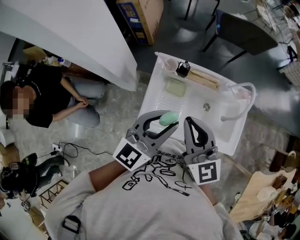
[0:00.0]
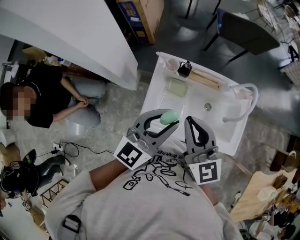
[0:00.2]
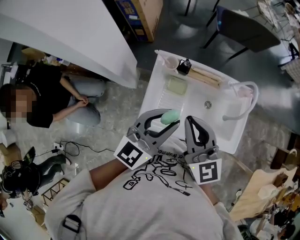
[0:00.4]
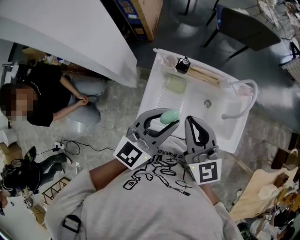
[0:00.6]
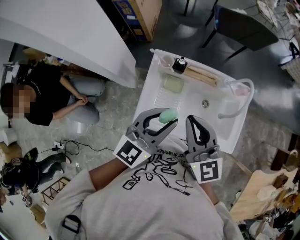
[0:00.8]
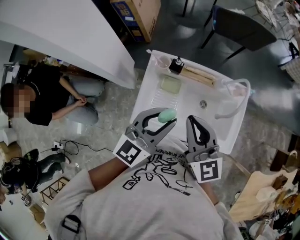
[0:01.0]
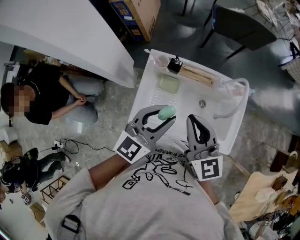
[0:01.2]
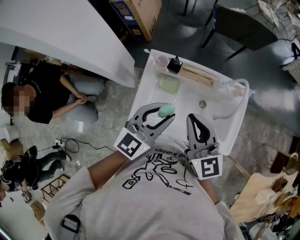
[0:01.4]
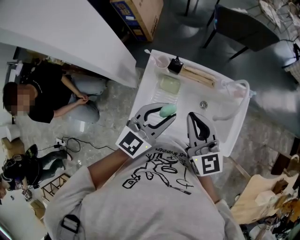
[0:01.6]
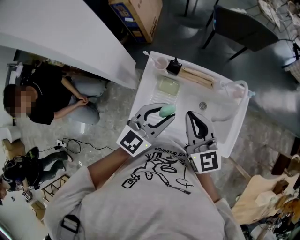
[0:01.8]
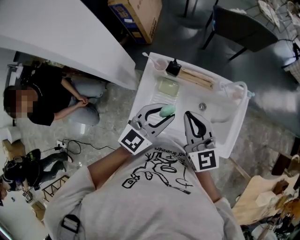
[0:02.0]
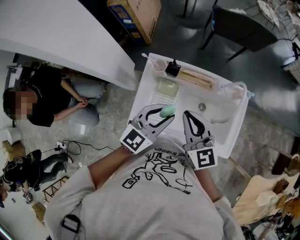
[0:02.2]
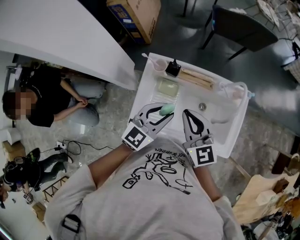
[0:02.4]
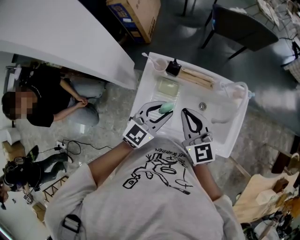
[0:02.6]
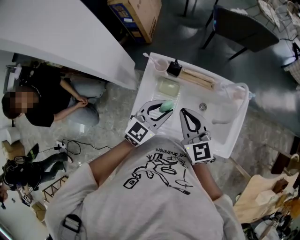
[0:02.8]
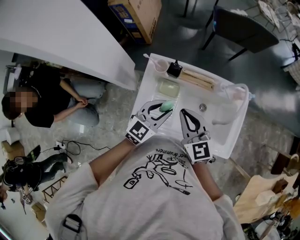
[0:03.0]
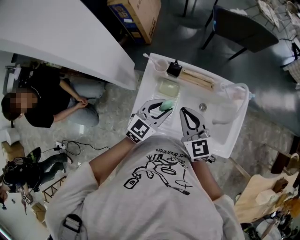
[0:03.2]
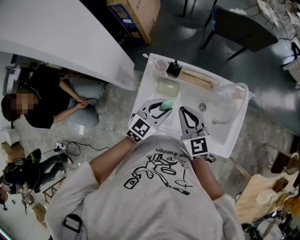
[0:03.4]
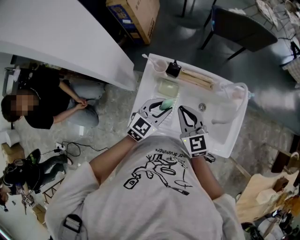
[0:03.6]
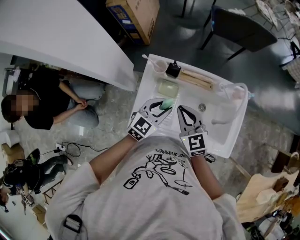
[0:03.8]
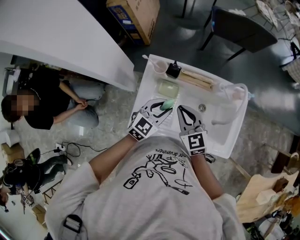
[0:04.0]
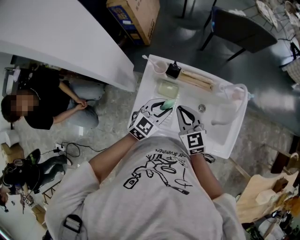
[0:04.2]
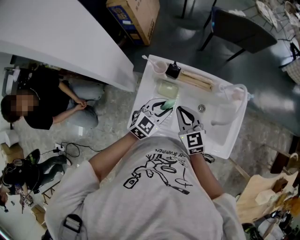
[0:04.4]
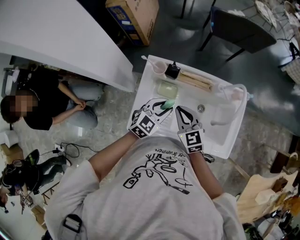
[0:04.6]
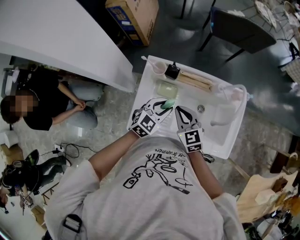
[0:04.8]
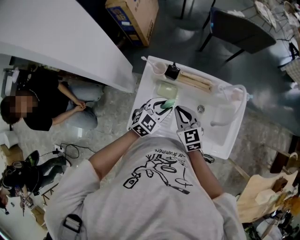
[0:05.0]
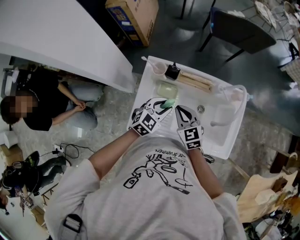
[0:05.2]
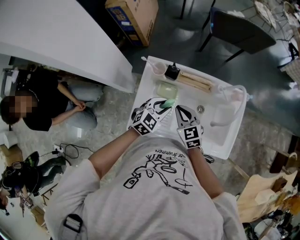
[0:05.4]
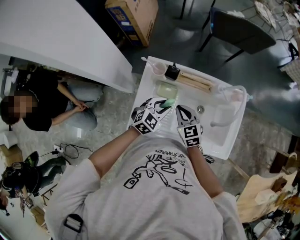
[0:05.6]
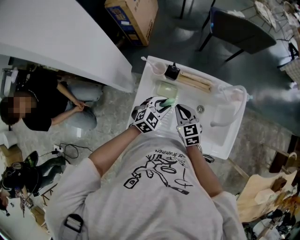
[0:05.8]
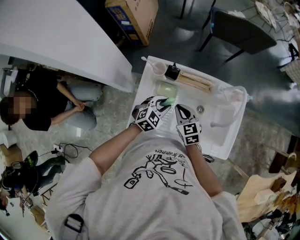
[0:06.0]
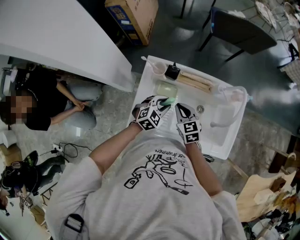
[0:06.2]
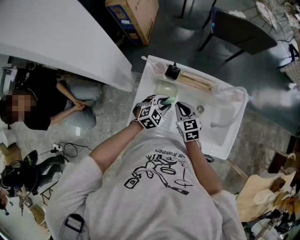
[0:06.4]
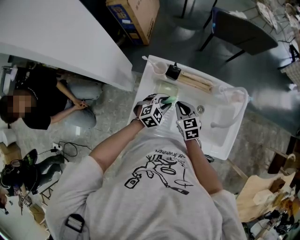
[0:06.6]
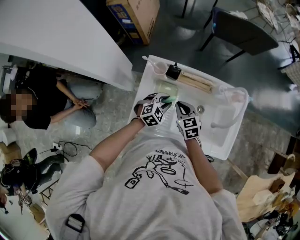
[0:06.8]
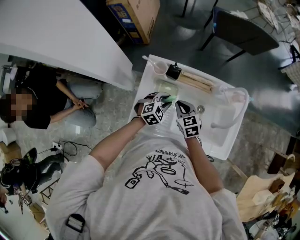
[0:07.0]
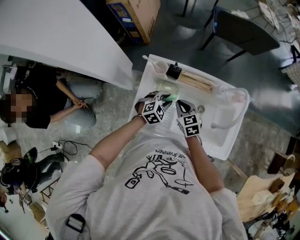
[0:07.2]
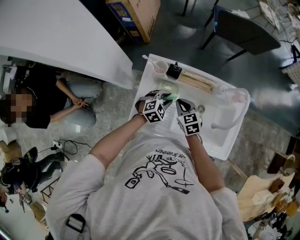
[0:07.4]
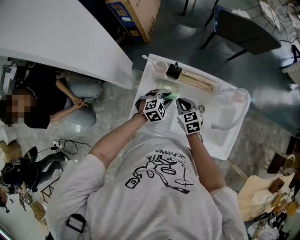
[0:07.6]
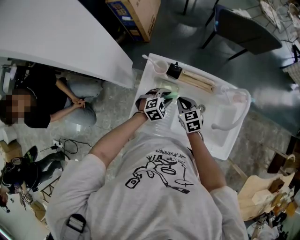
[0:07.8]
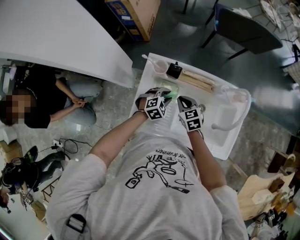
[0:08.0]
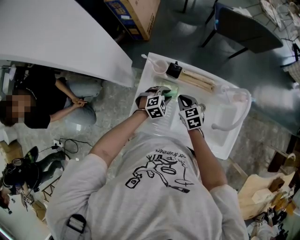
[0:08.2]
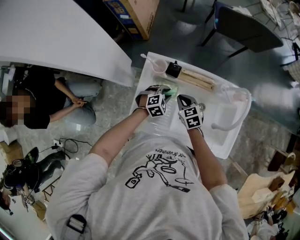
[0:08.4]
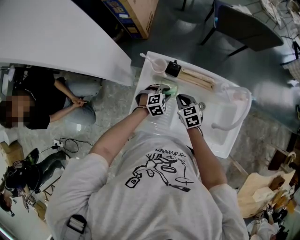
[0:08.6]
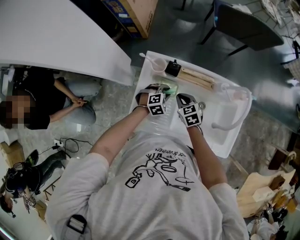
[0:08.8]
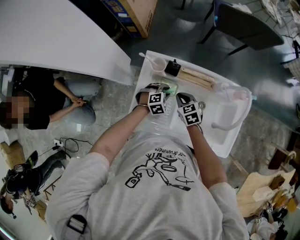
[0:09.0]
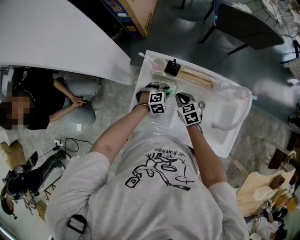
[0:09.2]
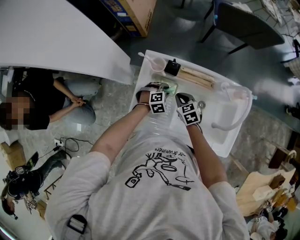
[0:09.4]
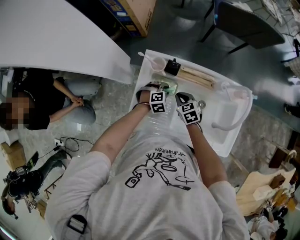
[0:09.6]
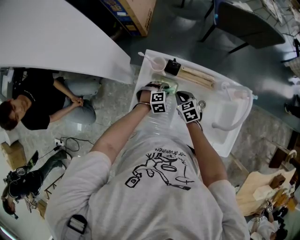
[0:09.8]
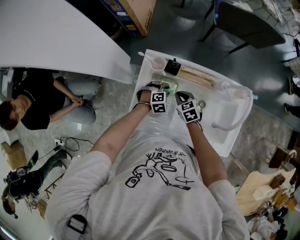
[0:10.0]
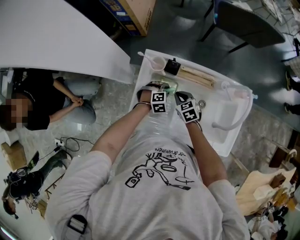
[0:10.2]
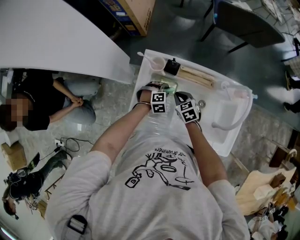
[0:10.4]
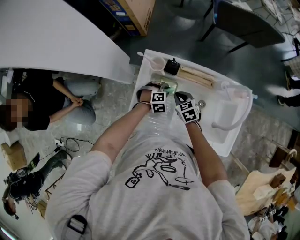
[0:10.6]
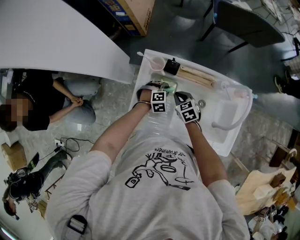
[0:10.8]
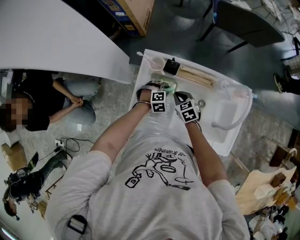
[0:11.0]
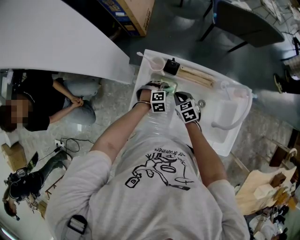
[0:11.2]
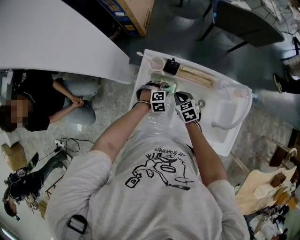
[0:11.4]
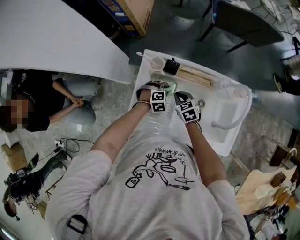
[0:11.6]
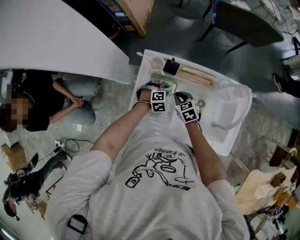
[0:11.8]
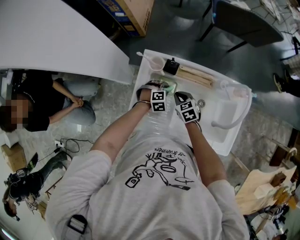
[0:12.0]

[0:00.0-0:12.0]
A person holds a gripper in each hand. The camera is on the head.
0.0 to 1.6 s: Both grippers move to the right, approximately 5 cm.
1.6 to 3.0 s: Both grippers travel together downward, about 10 cm.
3.0 to 4.4 s: Both grippers move downward, some 5 cm.
4.4 to 6.0 s: Both grippers move downward, about 10 cm.
6.0 to 7.6 s: The left gripper heads downward, covering some 5 cm, while the right gripper changes place by some 5 cm.
7.6 to 9.0 s: The left gripper goes roughly 5 cm downward.
9.0 to 10.4 s: There are only small adjustments of the grippers.
10.4 to 12.0 s: Neither gripper changes place.

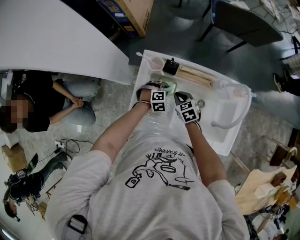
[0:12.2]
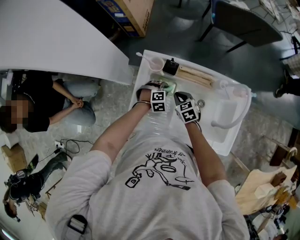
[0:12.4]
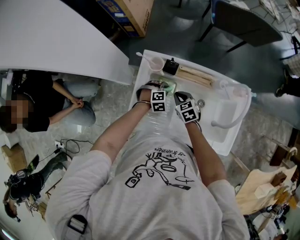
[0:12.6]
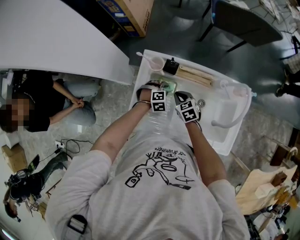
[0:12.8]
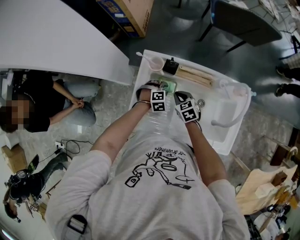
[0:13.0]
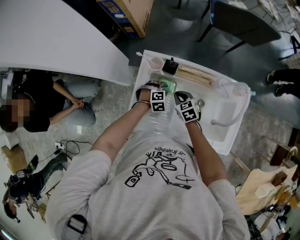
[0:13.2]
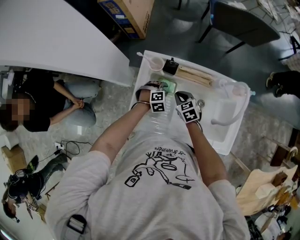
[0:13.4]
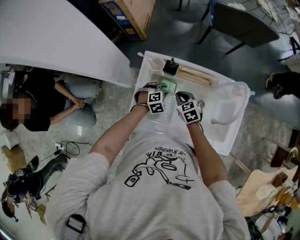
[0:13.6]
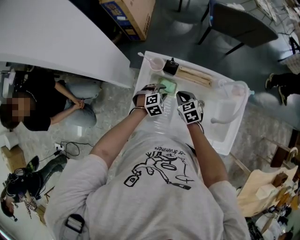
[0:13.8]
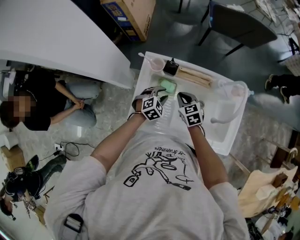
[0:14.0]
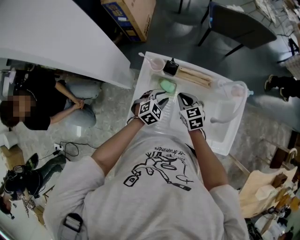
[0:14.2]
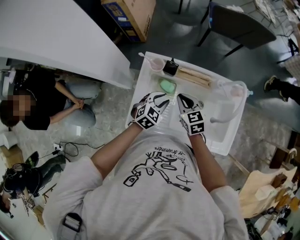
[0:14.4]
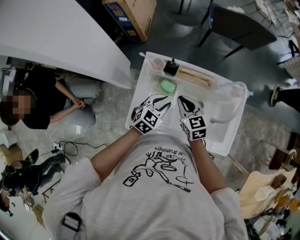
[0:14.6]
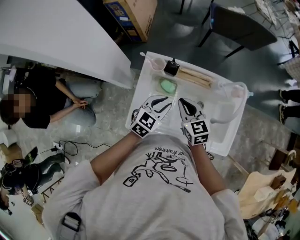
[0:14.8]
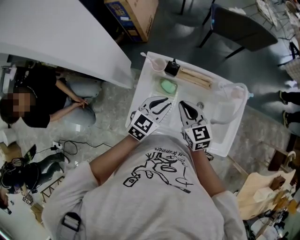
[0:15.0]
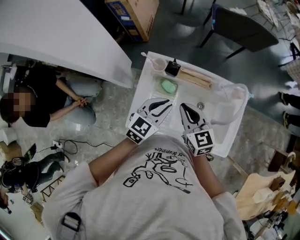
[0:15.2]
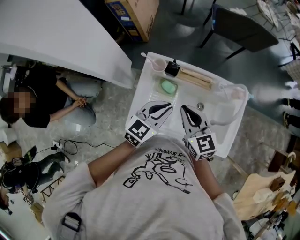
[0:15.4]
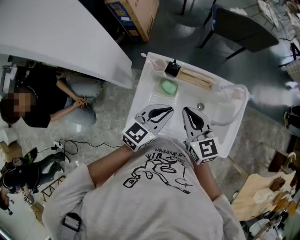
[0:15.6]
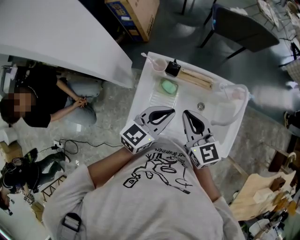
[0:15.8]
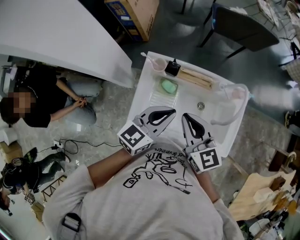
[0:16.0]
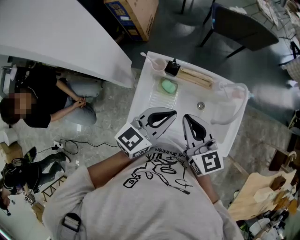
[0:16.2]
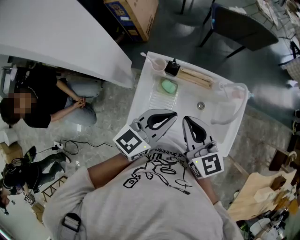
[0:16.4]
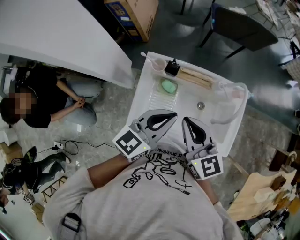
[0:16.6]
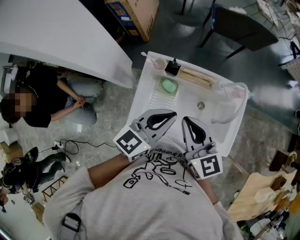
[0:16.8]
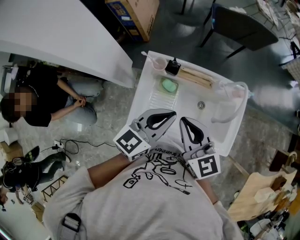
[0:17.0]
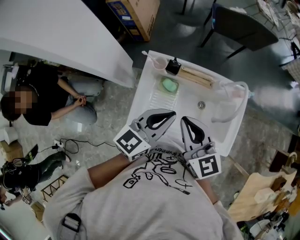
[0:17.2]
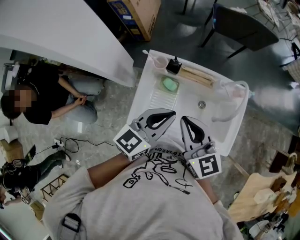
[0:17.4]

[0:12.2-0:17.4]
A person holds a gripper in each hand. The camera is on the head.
12.2 to 14.0 s: Both grippers move upward, roughly 5 cm. The left gripper changes its angle by some 20 degrees.
14.0 to 15.6 s: Both grippers travel together upward, roughly 20 cm. The left gripper tips its fingers upward by approximately 30 degrees, and closes its fingers; the right gripper rotates about 30 degrees.
15.6 to 17.4 s: Both grippers move upward, approximately 5 cm.

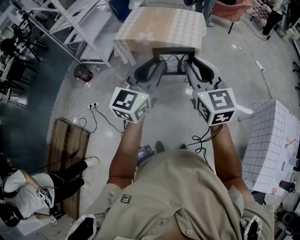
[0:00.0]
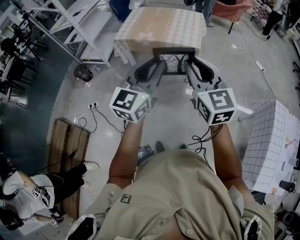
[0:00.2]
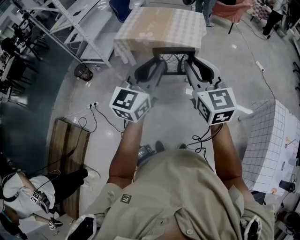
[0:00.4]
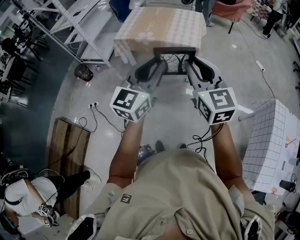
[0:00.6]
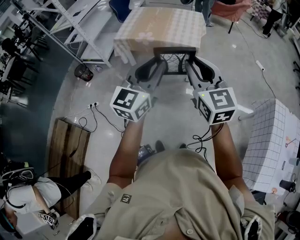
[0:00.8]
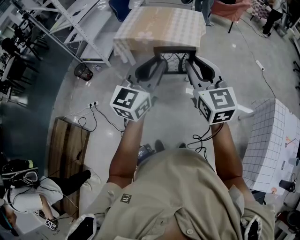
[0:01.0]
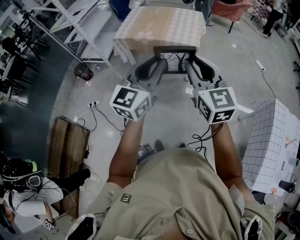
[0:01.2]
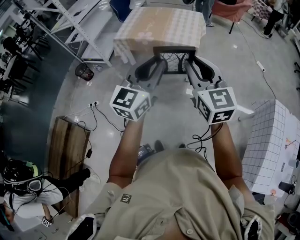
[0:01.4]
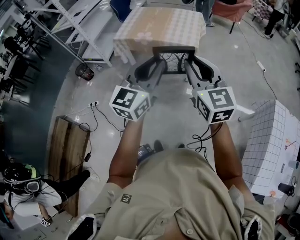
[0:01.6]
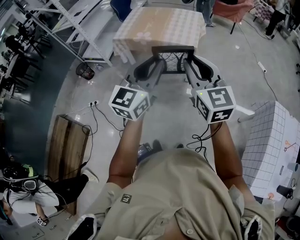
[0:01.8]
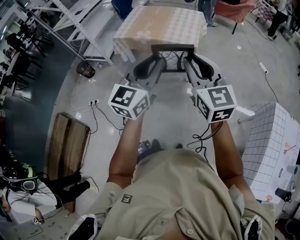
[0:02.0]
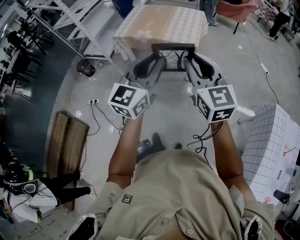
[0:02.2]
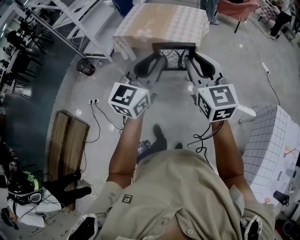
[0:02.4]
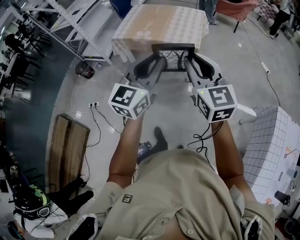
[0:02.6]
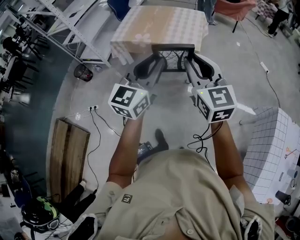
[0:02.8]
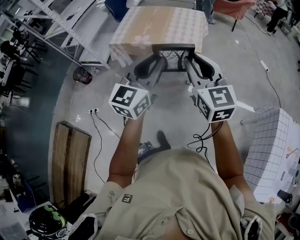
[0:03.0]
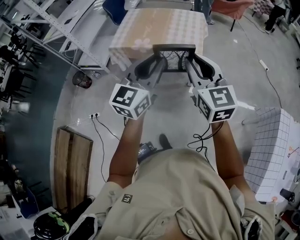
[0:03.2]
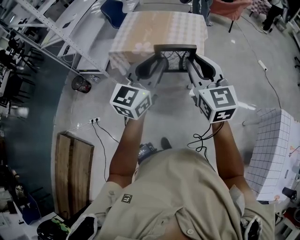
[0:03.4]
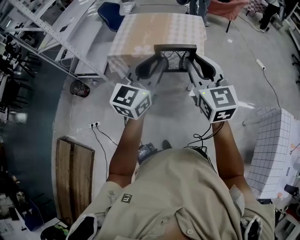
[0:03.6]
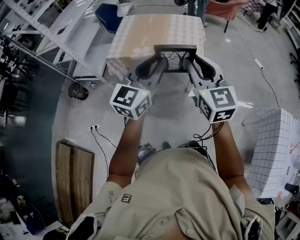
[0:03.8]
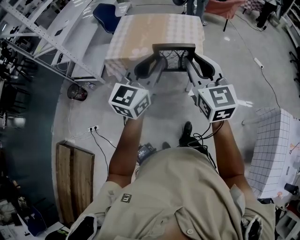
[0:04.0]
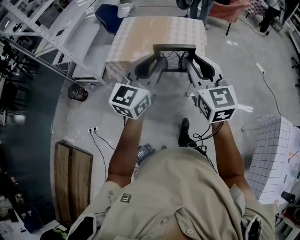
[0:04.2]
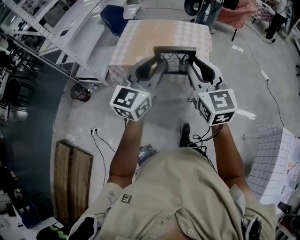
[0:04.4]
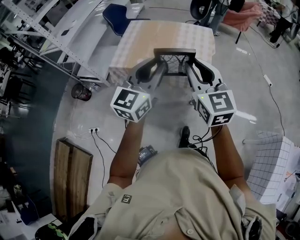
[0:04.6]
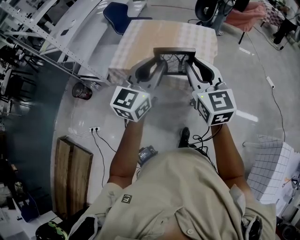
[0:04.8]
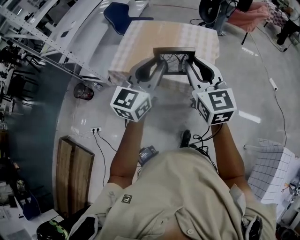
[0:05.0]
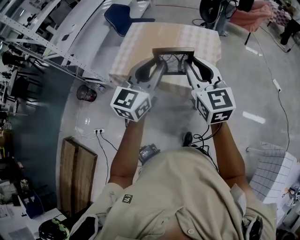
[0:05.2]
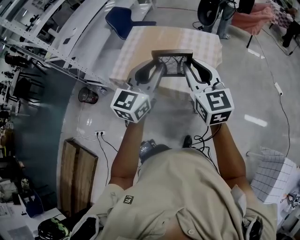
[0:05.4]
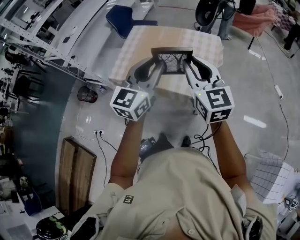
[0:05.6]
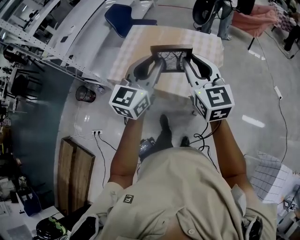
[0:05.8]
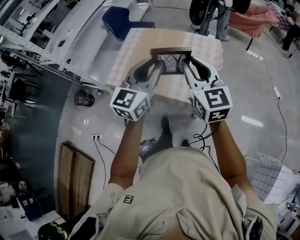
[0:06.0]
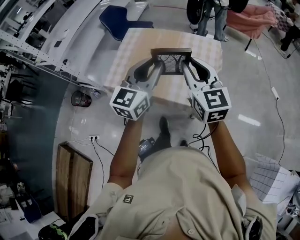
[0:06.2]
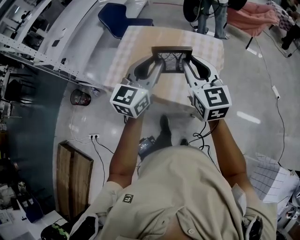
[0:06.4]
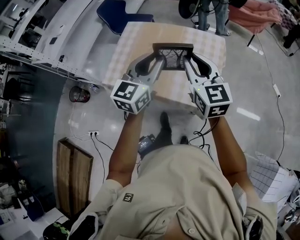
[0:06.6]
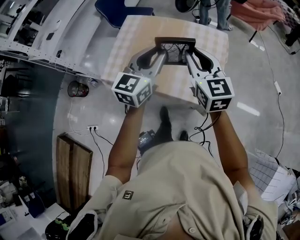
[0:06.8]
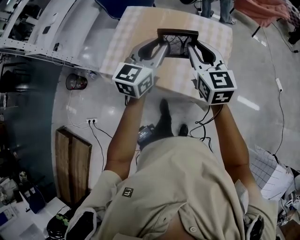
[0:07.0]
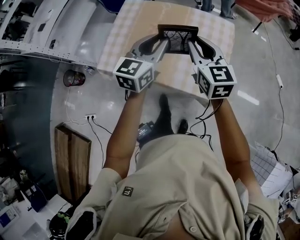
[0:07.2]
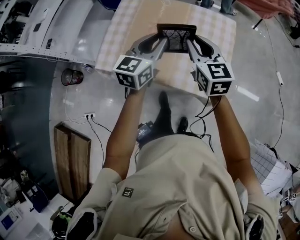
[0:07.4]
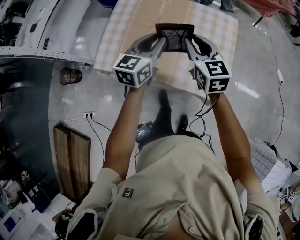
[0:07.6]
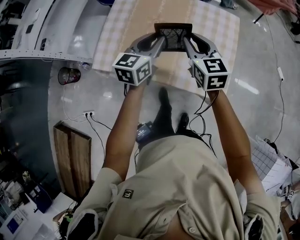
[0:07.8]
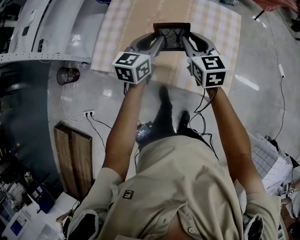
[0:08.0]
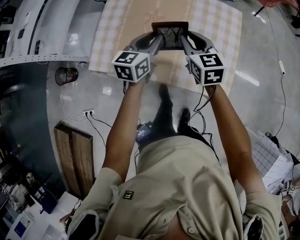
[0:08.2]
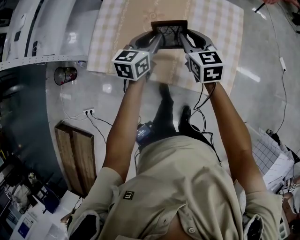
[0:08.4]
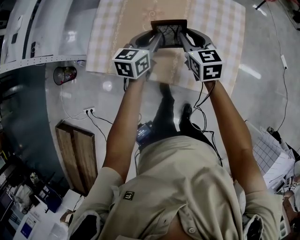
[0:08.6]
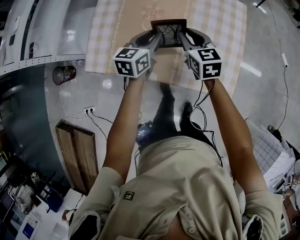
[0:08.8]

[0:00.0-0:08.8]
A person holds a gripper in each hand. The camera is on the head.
0.0 to 1.4 s: The grippers move only a little.
1.4 to 3.0 s: Both grippers move forward, approximately 10 cm.
3.0 to 4.4 s: The two grippers go approximately 15 cm forward.
4.4 to 5.8 s: The grippers both shift forward by some 25 cm.
5.8 to 7.4 s: Both grippers move forward and downward, about 25 cm.
7.4 to 8.8 s: The two grippers go approximately 20 cm downward.
